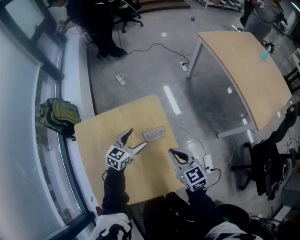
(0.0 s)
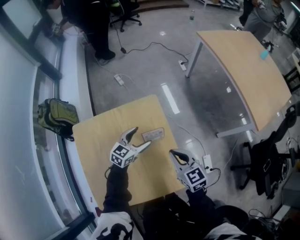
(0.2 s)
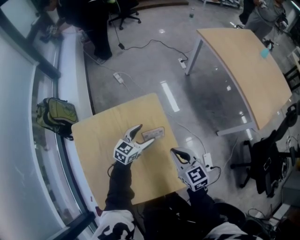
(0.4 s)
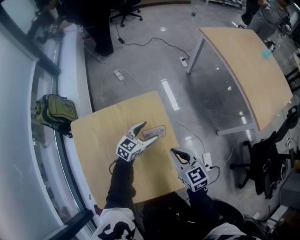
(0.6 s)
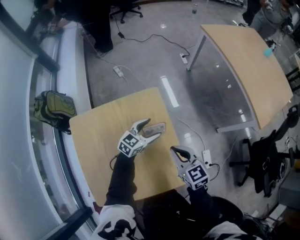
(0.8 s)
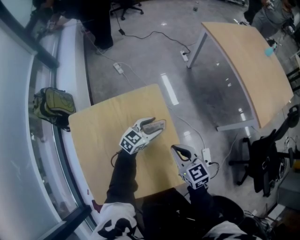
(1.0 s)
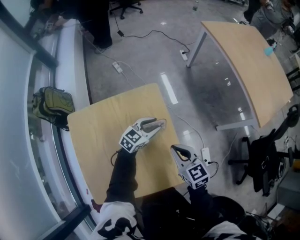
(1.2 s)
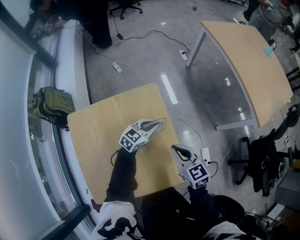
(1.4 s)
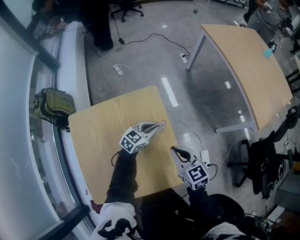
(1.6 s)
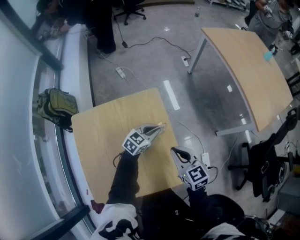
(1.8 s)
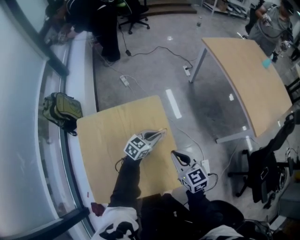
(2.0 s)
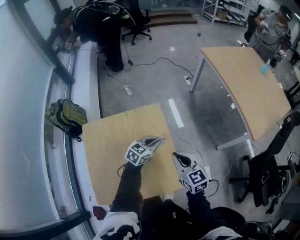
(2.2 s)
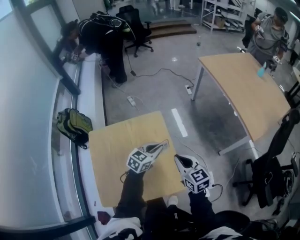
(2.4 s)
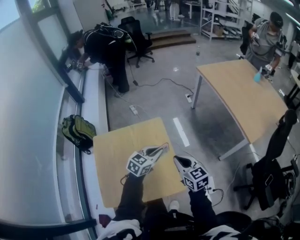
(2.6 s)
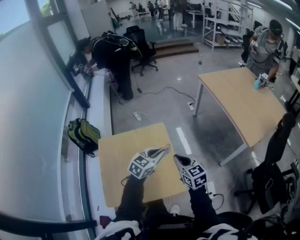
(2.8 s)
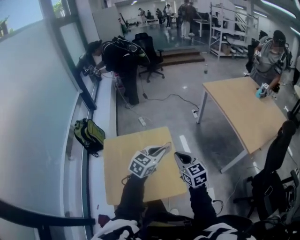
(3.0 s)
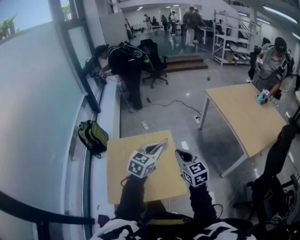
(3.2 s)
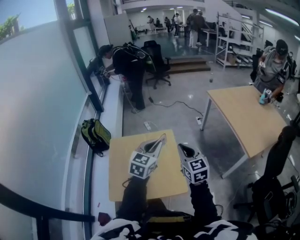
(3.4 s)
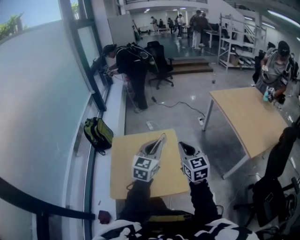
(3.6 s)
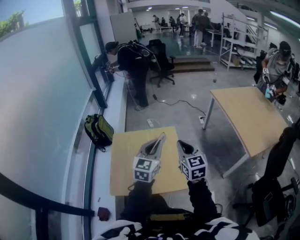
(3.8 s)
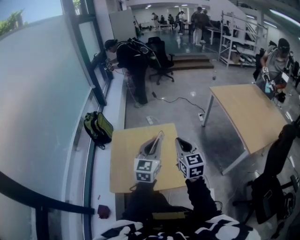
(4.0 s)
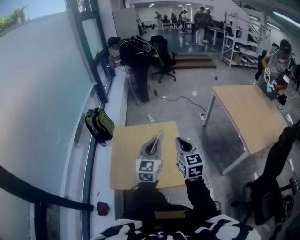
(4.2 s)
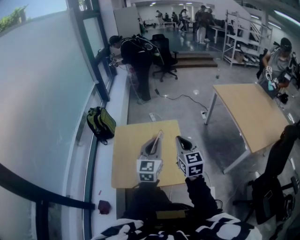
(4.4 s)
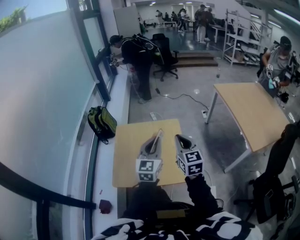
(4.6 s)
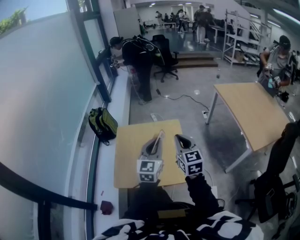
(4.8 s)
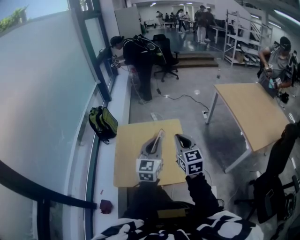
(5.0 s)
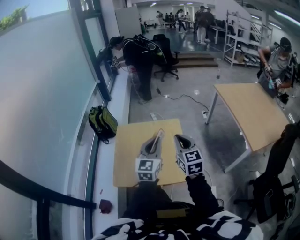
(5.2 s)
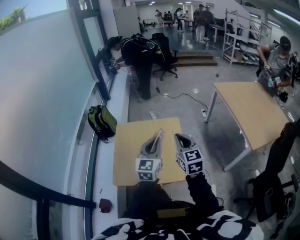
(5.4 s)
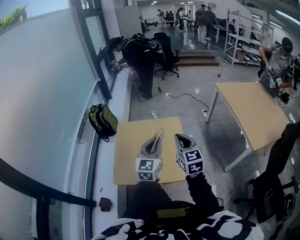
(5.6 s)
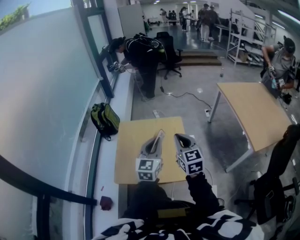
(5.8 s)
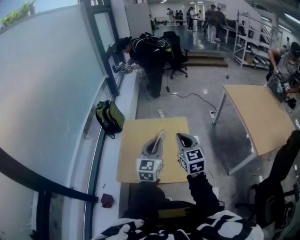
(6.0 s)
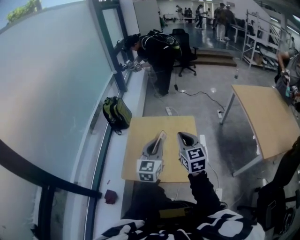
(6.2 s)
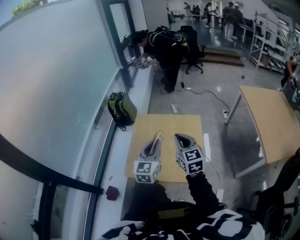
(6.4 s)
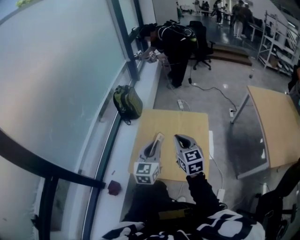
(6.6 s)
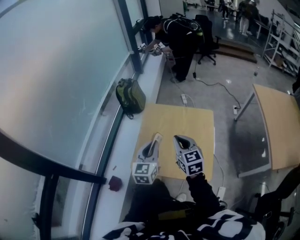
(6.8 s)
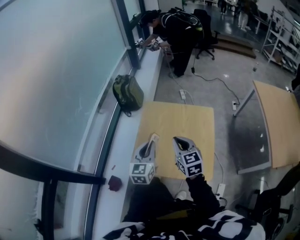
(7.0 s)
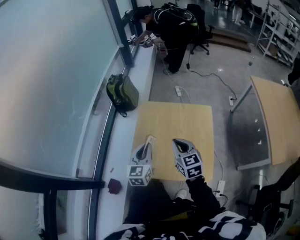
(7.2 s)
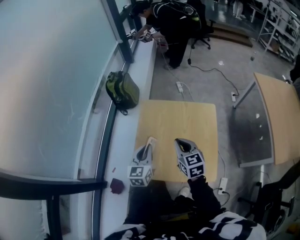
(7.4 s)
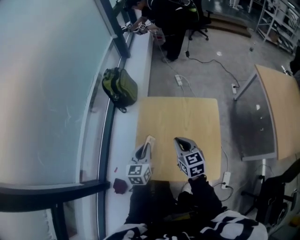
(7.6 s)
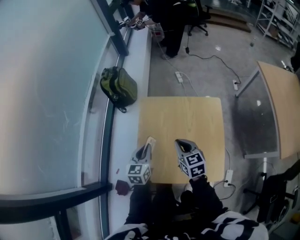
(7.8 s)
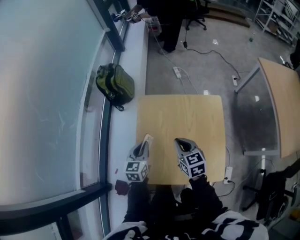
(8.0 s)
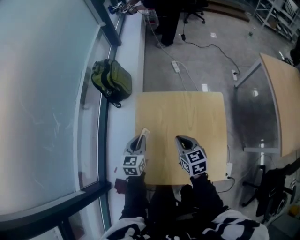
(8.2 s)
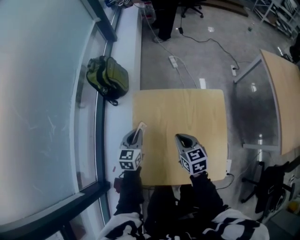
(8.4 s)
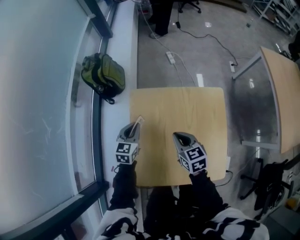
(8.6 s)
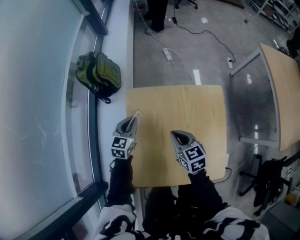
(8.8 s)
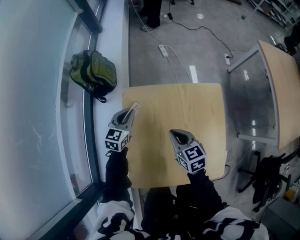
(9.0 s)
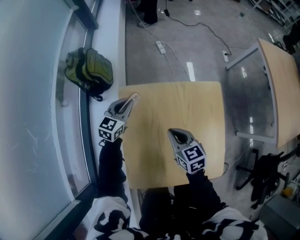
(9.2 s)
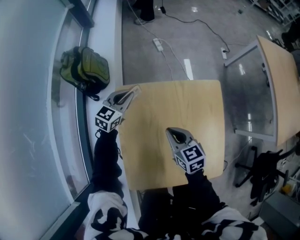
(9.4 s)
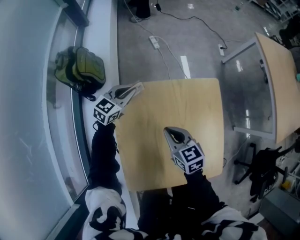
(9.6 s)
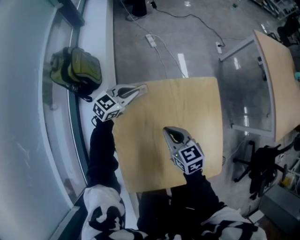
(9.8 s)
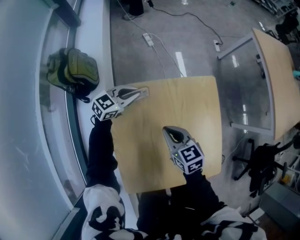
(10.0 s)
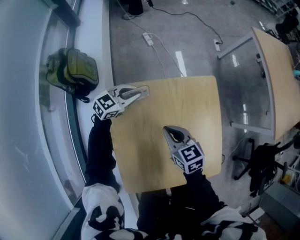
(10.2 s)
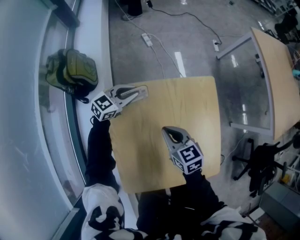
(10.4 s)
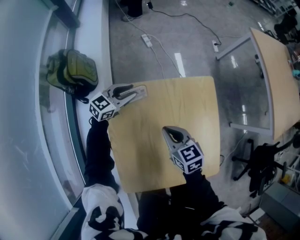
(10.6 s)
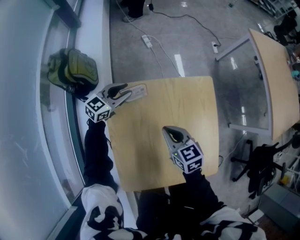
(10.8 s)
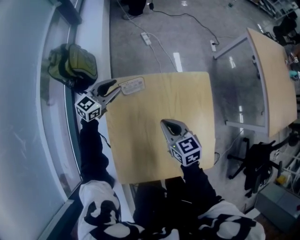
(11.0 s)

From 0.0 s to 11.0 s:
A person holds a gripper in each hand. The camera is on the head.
From 0.0 s to 1.6 s: The left gripper moves to the right, about 10 cm, and closes up.
From 1.6 s to 3.2 s: The right gripper goes some 20 cm upward. The left gripper travels upward and backward by some 35 cm, and changes its angle by some 30 degrees.
From 3.2 s to 4.8 s: The left gripper travels backward and to the left by roughly 10 cm, and rotates roughly 30 degrees. The right gripper shifts by roughly 5 cm.
From 4.8 s to 6.2 s: Both grippers move to the left, roughly 5 cm.
From 6.2 s to 7.8 s: Both grippers move downward, to the left and forward, roughly 25 cm. The right gripper swivels about 30 degrees, while the left gripper changes its angle by approximately 30 degrees.
From 7.8 s to 9.4 s: The left gripper is displaced forward by approximately 30 cm, and turns by approximately 40 degrees; the right gripper shifts approximately 10 cm forward and downward.
From 9.4 s to 11.0 s: The left gripper reaches approximately 10 cm to the right, then returns.

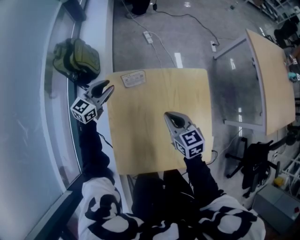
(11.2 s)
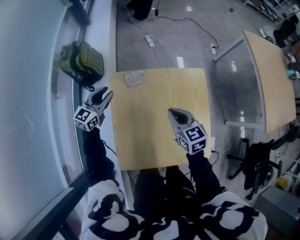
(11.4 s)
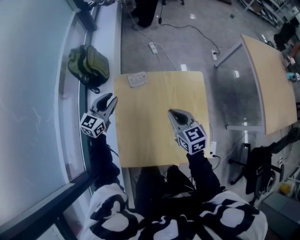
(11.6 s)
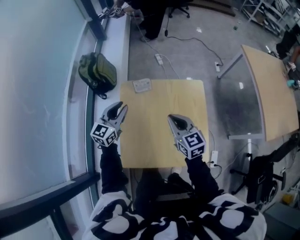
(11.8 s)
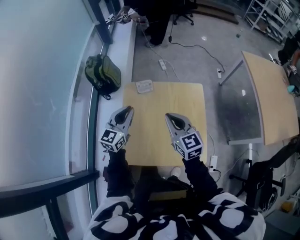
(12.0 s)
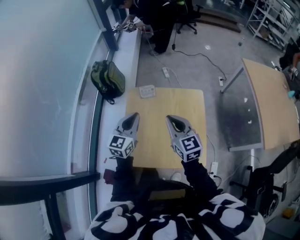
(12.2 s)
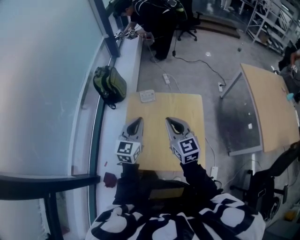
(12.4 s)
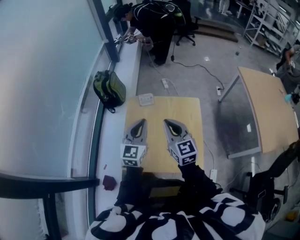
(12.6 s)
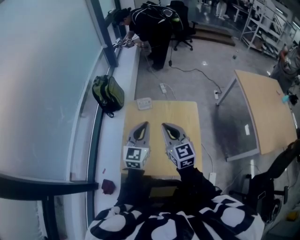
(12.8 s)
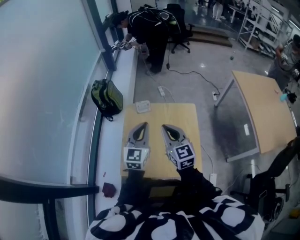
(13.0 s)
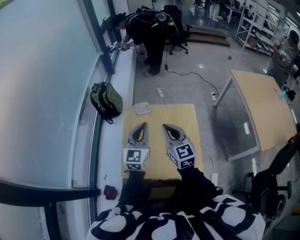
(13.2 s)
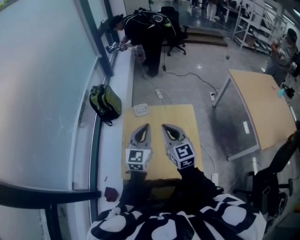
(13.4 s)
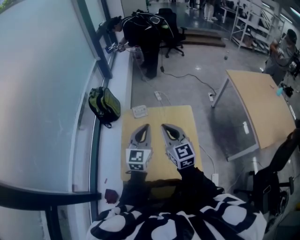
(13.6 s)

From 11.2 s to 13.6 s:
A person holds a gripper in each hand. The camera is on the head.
From 11.2 s to 12.4 s: The left gripper heads backward, upward and to the right, covering approximately 30 cm, and turns by some 30 degrees, while the right gripper goes approximately 20 cm upward and backward, and rotates some 30 degrees.
From 12.4 s to 13.6 s: The left gripper is displaced to the right by approximately 5 cm.

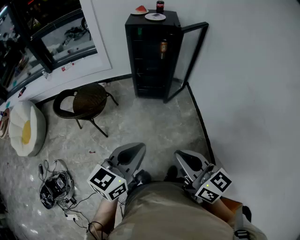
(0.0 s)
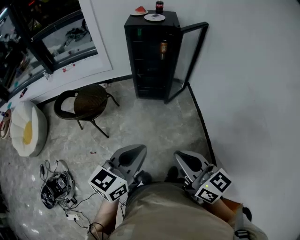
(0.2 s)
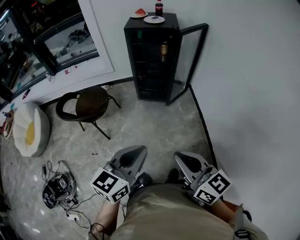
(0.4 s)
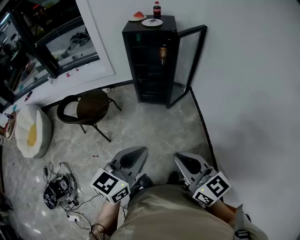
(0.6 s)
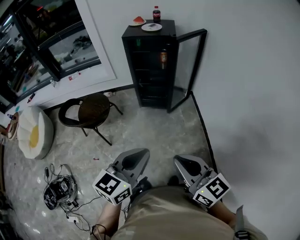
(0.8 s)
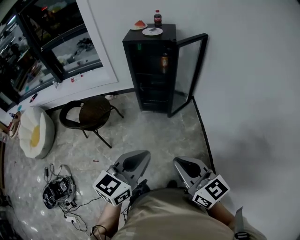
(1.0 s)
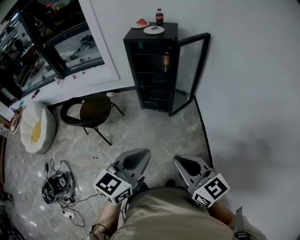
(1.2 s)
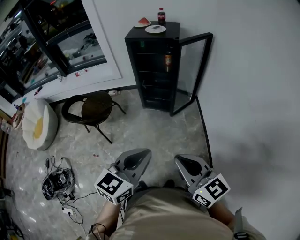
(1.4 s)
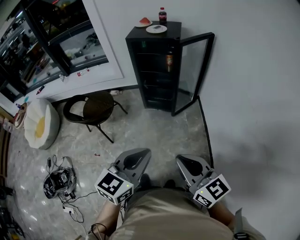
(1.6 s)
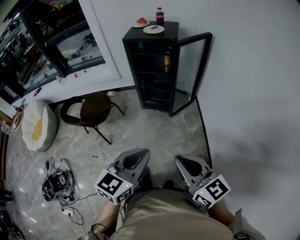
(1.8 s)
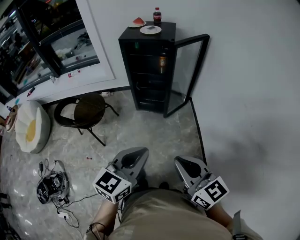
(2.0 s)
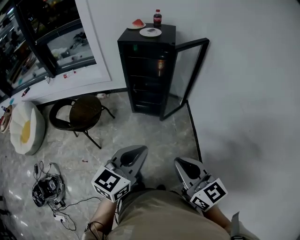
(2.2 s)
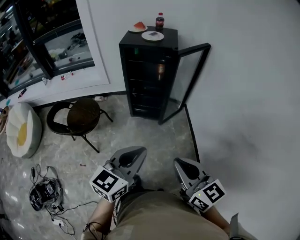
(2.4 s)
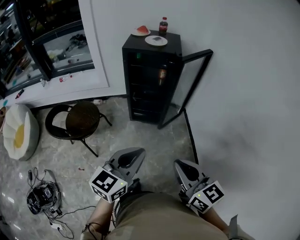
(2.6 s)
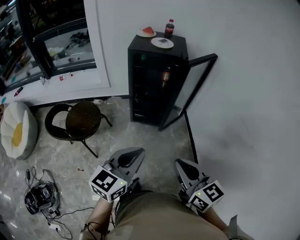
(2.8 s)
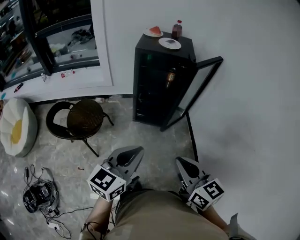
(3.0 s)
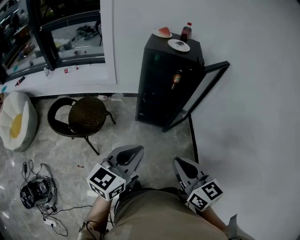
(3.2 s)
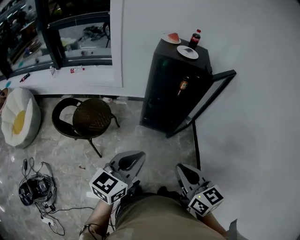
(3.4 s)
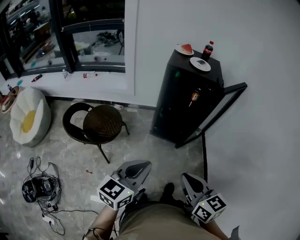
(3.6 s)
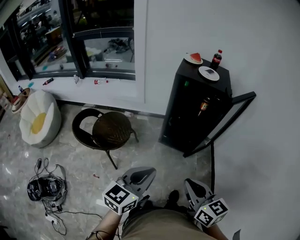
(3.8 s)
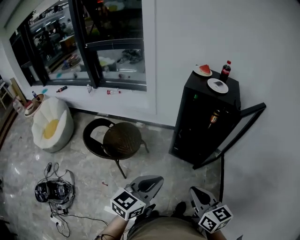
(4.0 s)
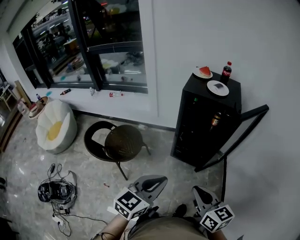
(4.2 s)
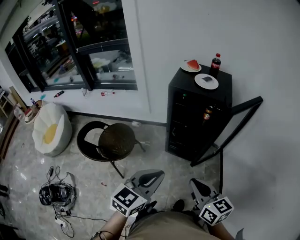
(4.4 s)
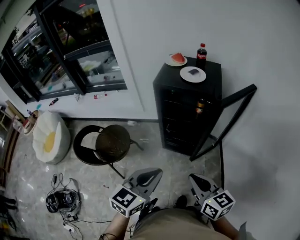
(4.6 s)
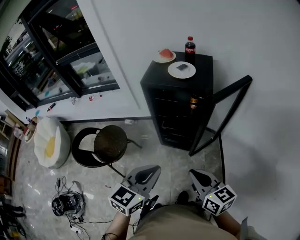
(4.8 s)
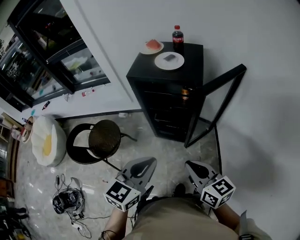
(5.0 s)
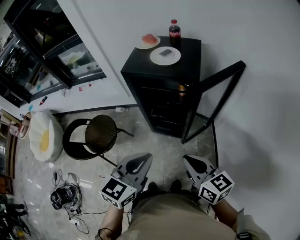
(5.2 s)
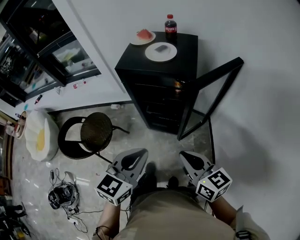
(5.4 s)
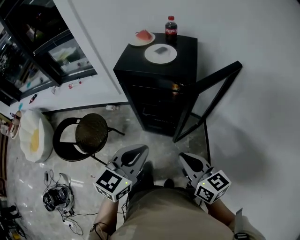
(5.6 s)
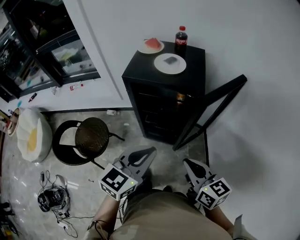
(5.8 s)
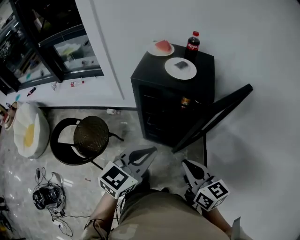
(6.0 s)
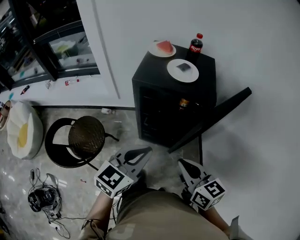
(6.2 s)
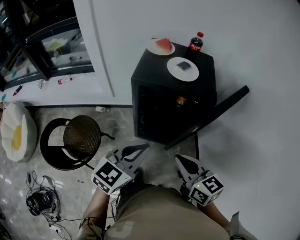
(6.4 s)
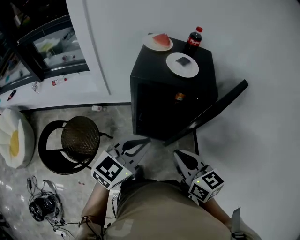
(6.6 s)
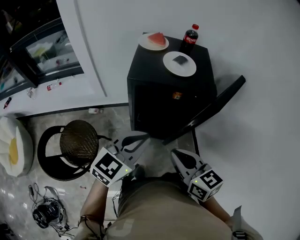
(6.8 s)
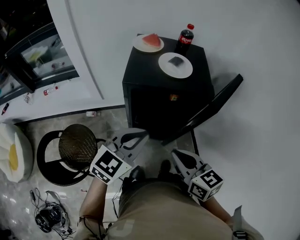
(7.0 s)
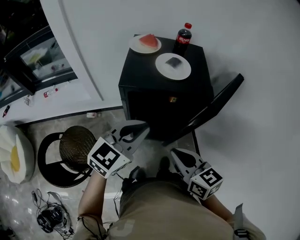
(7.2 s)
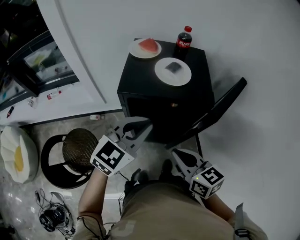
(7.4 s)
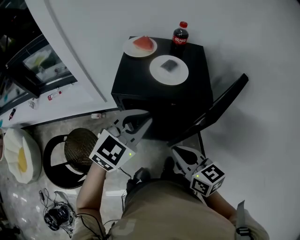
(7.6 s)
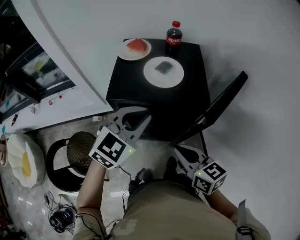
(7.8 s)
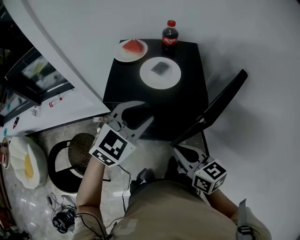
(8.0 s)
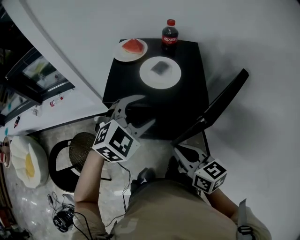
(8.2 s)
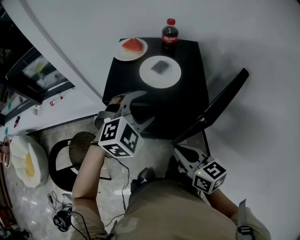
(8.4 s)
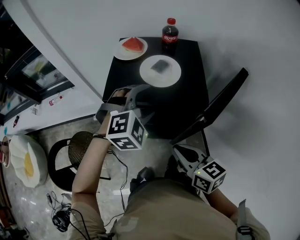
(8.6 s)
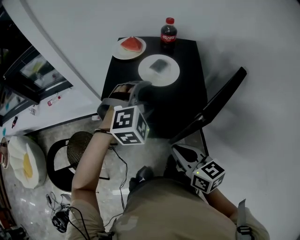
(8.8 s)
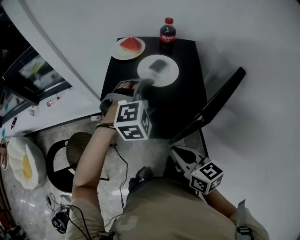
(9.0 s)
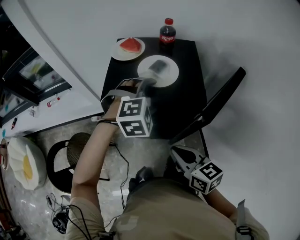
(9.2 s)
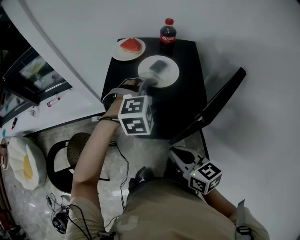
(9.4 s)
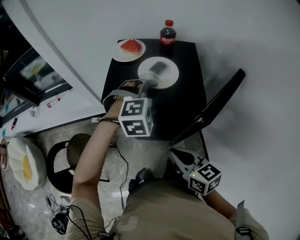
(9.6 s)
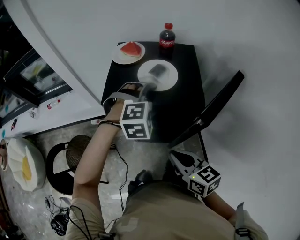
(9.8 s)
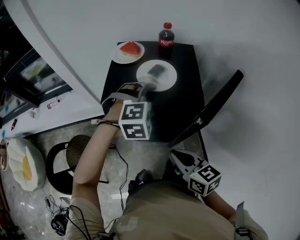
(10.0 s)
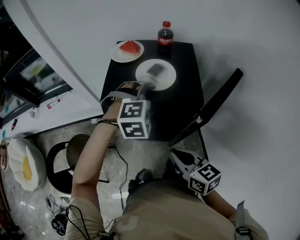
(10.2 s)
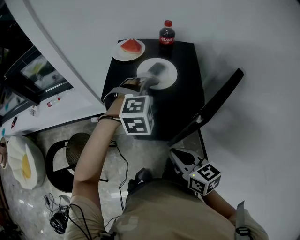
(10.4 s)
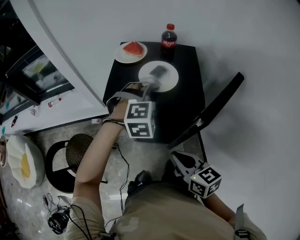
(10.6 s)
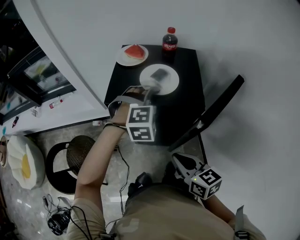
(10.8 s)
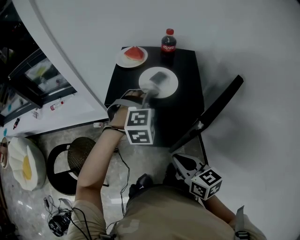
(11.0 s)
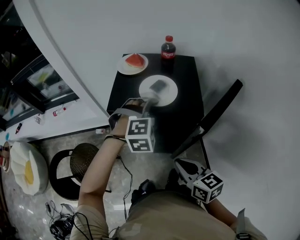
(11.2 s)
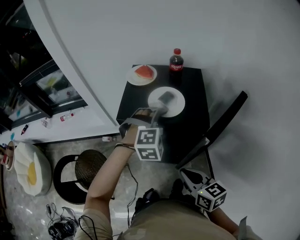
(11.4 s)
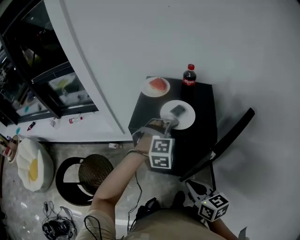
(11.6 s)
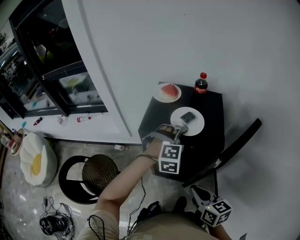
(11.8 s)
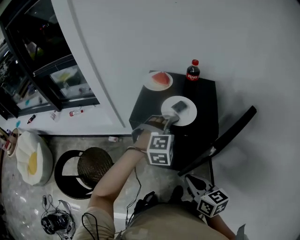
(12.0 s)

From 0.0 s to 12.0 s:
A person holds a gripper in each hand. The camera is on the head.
From 0.0 s to 1.6 s: The right gripper shifts approximately 15 cm to the right and forward, while the left gripper goes about 15 cm to the right.
From 1.6 s to 3.0 s: The left gripper is displaced to the left and forward by about 20 cm; the right gripper is displaced forward and to the left by about 15 cm.
From 3.0 s to 4.4 s: Both grippers move forward, roughly 10 cm.
From 4.4 s to 6.0 s: The two grippers go about 15 cm forward and to the right.
From 6.0 s to 7.6 s: The left gripper goes approximately 20 cm forward, and rotates some 20 degrees; the right gripper shifts some 10 cm forward and to the left.
From 7.6 s to 9.0 s: The left gripper is displaced forward, to the right and downward by roughly 15 cm, changes its angle by approximately 50 degrees, and opens.
From 9.0 s to 12.0 s: The grippers make only small movements.
